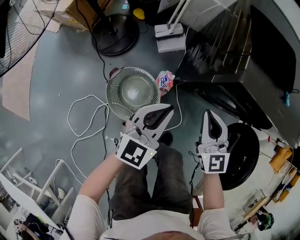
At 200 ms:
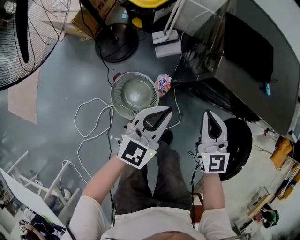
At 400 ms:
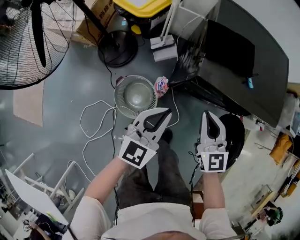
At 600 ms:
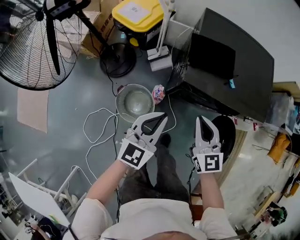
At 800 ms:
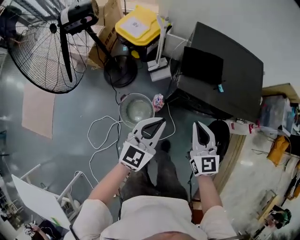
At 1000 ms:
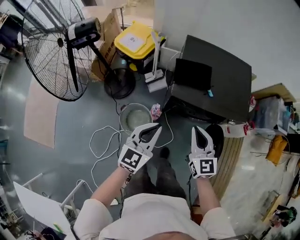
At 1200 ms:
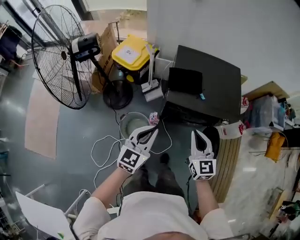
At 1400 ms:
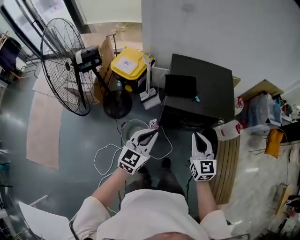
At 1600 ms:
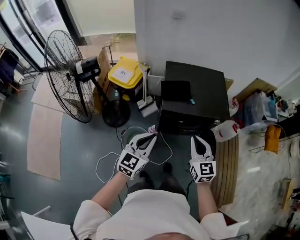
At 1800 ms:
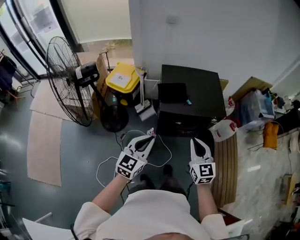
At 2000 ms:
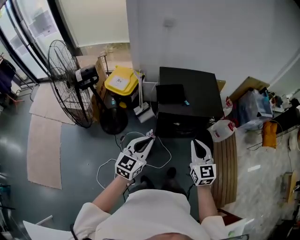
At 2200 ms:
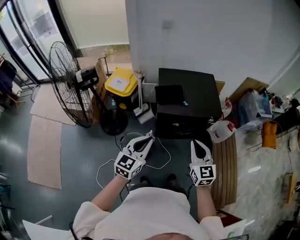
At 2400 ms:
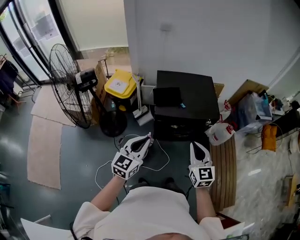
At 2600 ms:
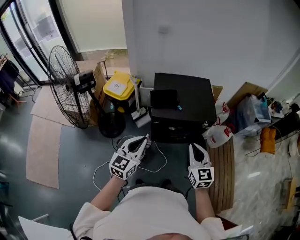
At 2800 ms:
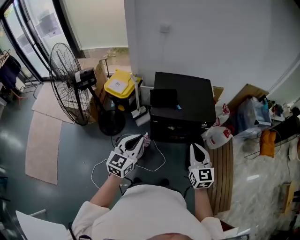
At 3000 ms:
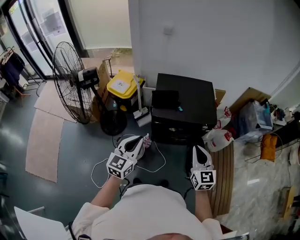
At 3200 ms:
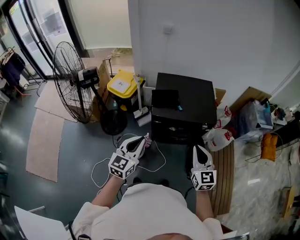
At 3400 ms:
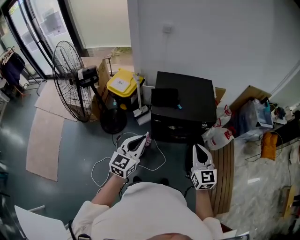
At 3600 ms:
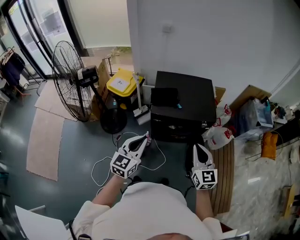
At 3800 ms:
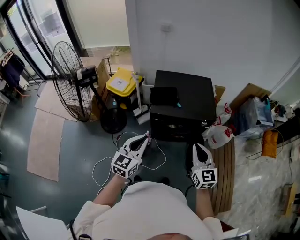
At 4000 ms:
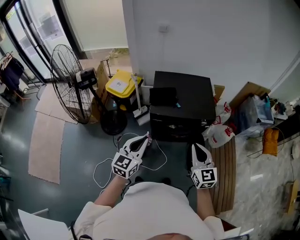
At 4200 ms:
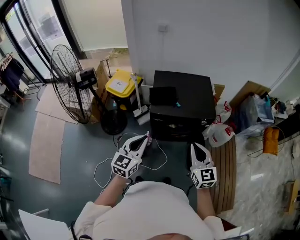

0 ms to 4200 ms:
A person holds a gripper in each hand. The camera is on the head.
0 ms to 1400 ms: The two grippers go some 40 cm upward. The right gripper rotates about 20 degrees.
1400 ms to 2800 ms: The left gripper is displaced upward and backward by some 10 cm, while the right gripper is displaced to the right, upward and backward by some 15 cm.
2800 ms to 4200 ms: The grippers move only a little.

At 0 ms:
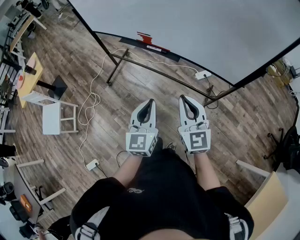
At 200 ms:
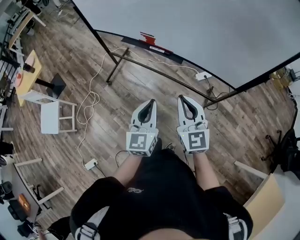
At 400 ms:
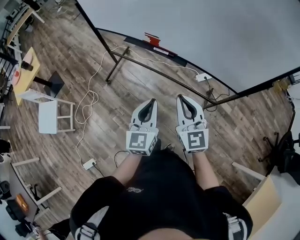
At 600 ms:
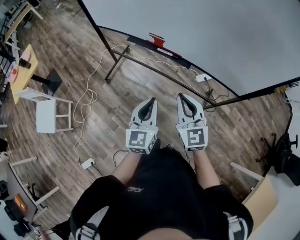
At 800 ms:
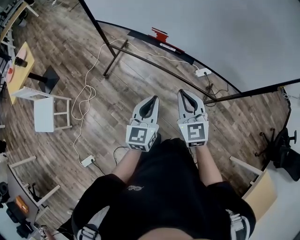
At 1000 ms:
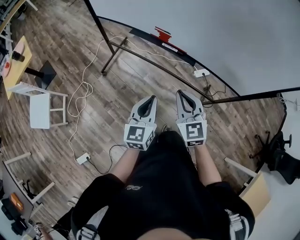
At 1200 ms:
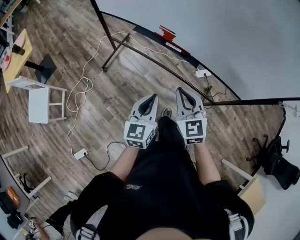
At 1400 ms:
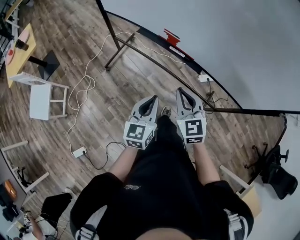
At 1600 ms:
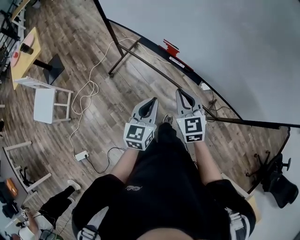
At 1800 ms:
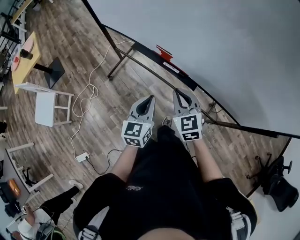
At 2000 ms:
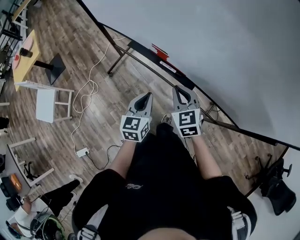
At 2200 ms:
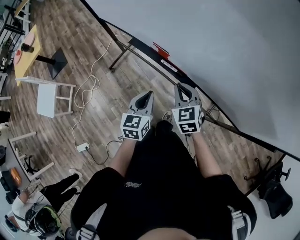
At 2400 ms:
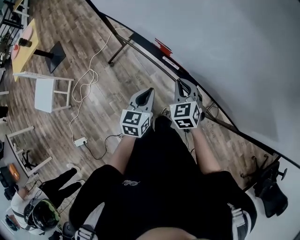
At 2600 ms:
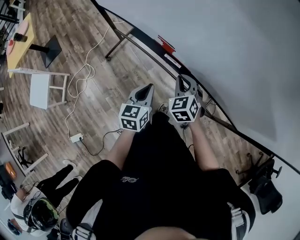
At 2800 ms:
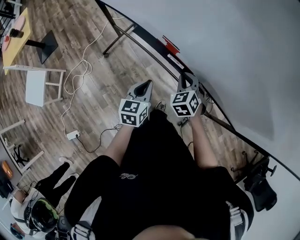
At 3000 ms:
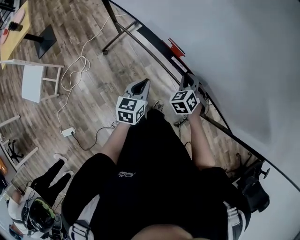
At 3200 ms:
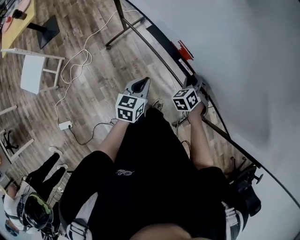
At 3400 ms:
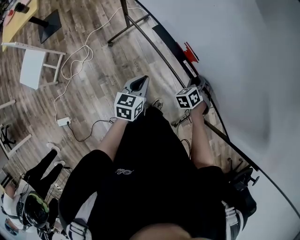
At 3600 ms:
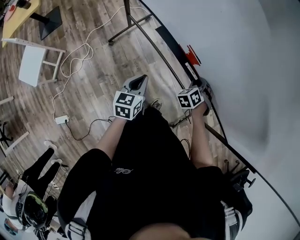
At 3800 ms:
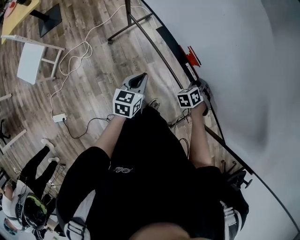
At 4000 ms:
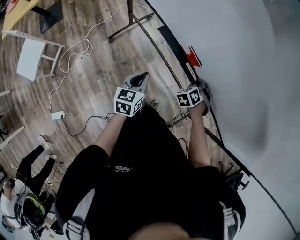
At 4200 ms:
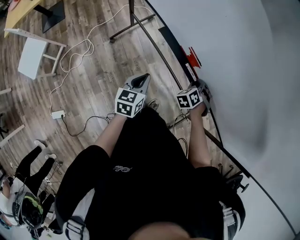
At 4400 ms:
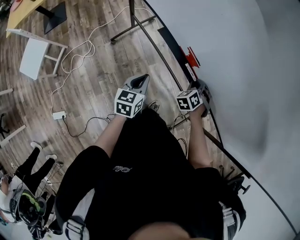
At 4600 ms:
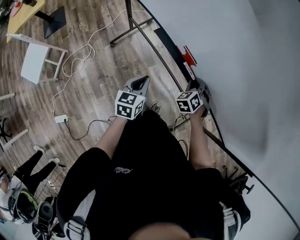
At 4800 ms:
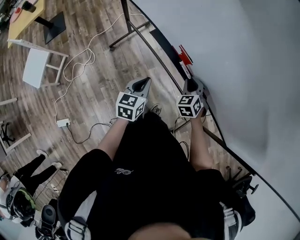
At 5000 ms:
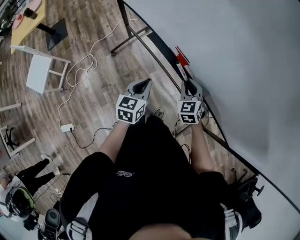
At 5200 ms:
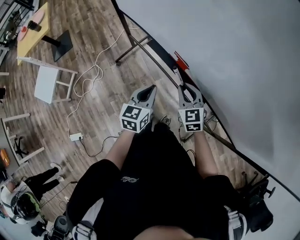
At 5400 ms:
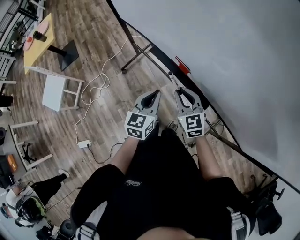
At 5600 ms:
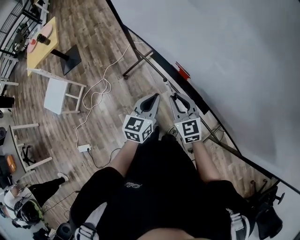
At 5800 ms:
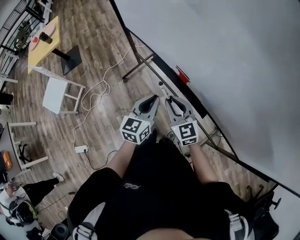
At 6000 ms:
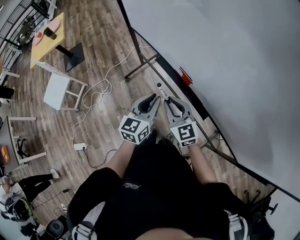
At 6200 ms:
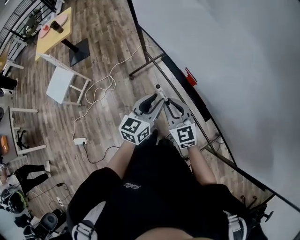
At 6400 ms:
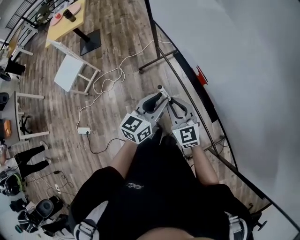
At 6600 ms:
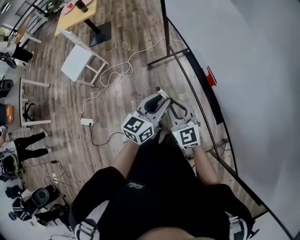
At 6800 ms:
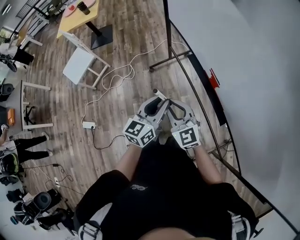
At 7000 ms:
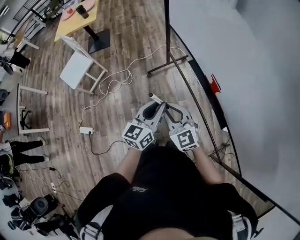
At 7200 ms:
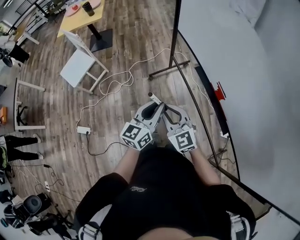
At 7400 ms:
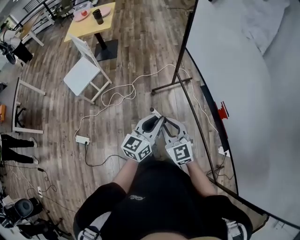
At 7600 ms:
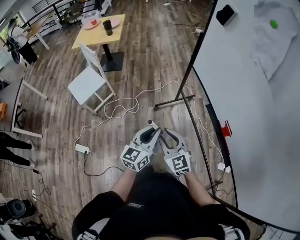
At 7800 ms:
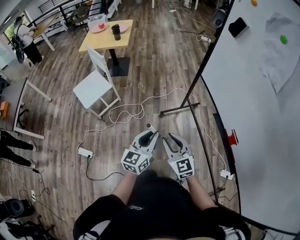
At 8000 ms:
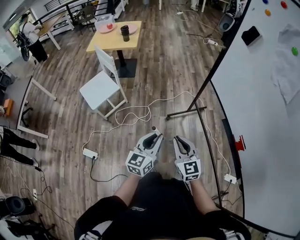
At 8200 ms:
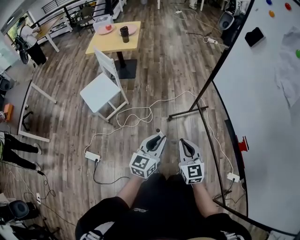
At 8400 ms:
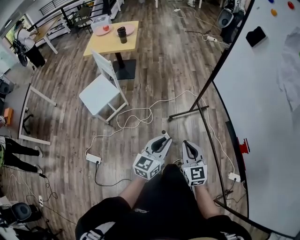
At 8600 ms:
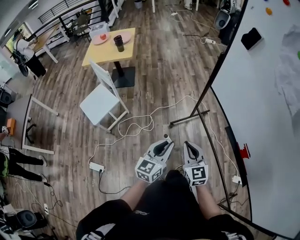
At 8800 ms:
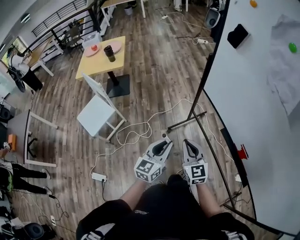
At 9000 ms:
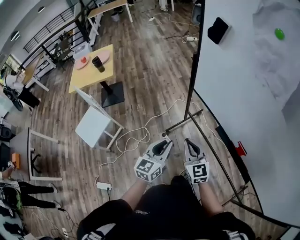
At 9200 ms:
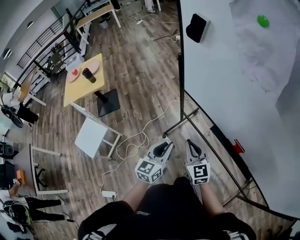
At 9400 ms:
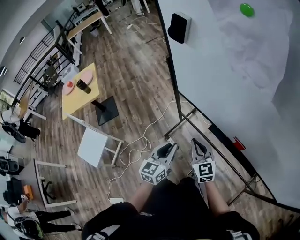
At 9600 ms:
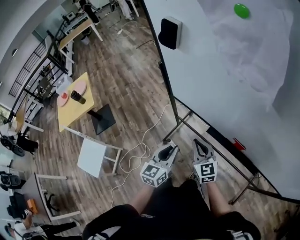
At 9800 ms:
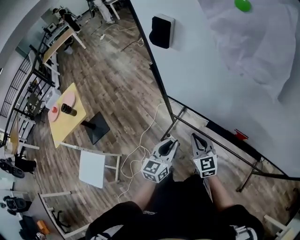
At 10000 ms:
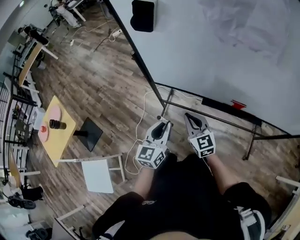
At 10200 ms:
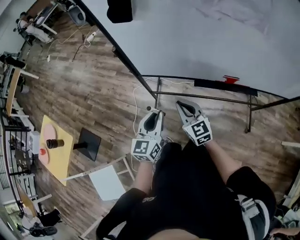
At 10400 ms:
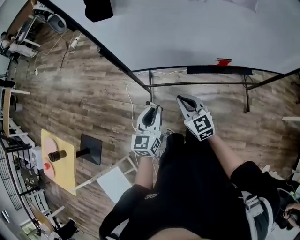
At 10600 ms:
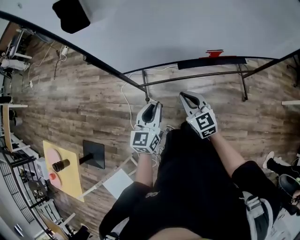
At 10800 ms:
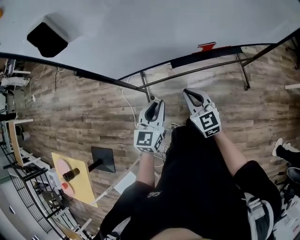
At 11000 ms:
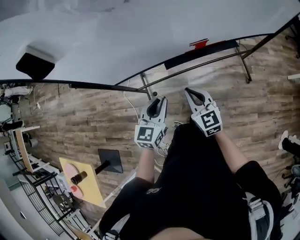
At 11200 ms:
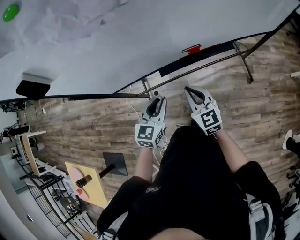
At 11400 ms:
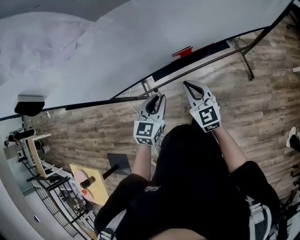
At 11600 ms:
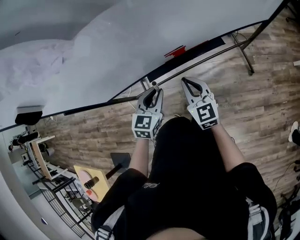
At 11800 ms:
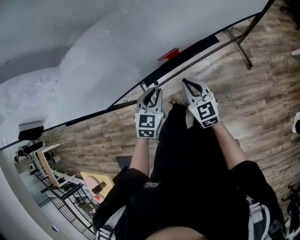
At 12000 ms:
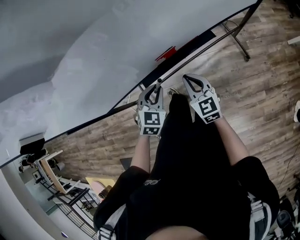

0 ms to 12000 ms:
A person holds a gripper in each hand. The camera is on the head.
0 ms to 1600 ms: The right gripper is displaced forward and to the left by roughly 25 cm, and swivels about 20 degrees; the left gripper is displaced forward, to the left and downward by some 20 cm.
1600 ms to 3000 ms: The grippers both shift forward and downward by about 20 cm. The right gripper turns by approximately 40 degrees.
3000 ms to 4400 ms: The right gripper goes about 5 cm downward; the left gripper goes roughly 5 cm to the left.
4400 ms to 6000 ms: Both grippers move upward, some 15 cm. The right gripper points its fingers approximately 40 degrees further upward.
6000 ms to 7600 ms: The two grippers go approximately 30 cm to the left. The right gripper turns by approximately 20 degrees; the left gripper swivels approximately 20 degrees.
7600 ms to 9000 ms: Both grippers travel together forward, about 15 cm. The right gripper rotates some 30 degrees, and closes.
9000 ms to 10400 ms: The right gripper changes place by roughly 10 cm, and swivels roughly 40 degrees; the left gripper ends up some 15 cm from where it was, and turns by approximately 40 degrees.
10400 ms to 12000 ms: The right gripper shifts by about 35 cm, and swivels roughly 30 degrees. Meanwhile the left gripper ends up about 35 cm from where it was, and swivels some 60 degrees.

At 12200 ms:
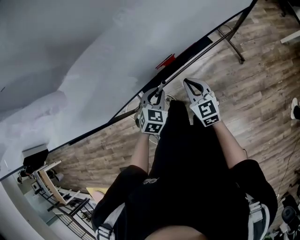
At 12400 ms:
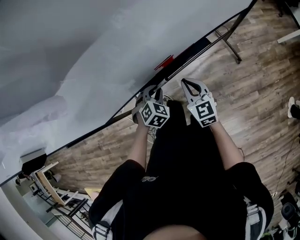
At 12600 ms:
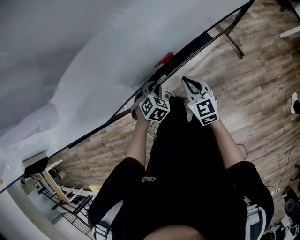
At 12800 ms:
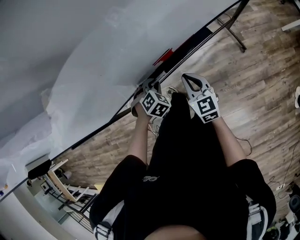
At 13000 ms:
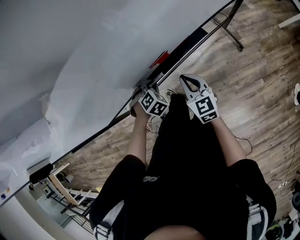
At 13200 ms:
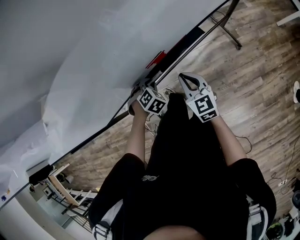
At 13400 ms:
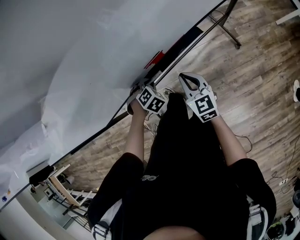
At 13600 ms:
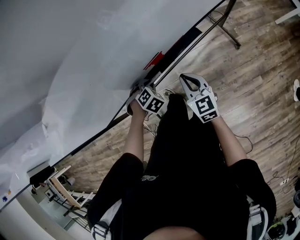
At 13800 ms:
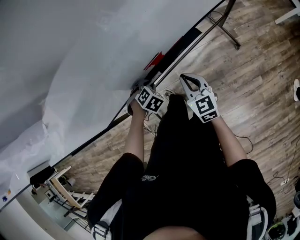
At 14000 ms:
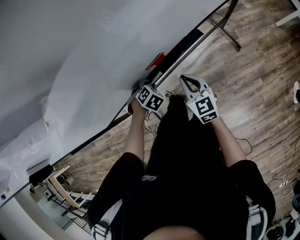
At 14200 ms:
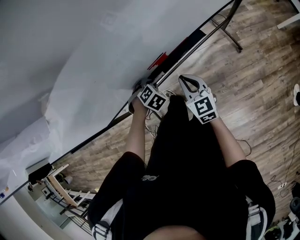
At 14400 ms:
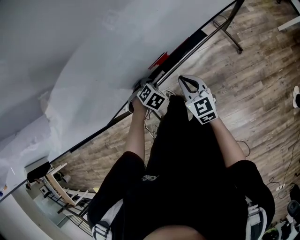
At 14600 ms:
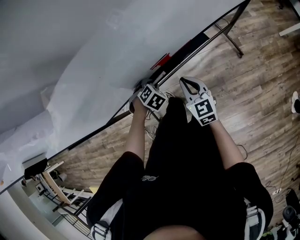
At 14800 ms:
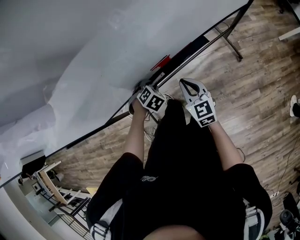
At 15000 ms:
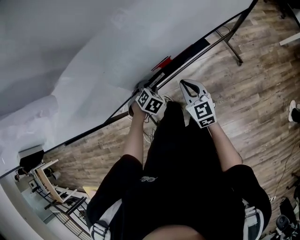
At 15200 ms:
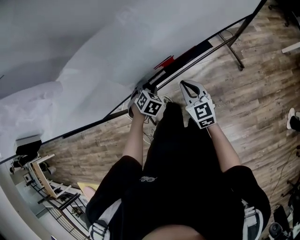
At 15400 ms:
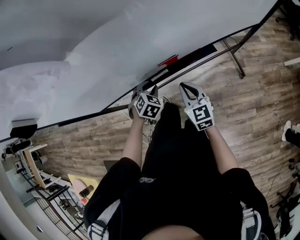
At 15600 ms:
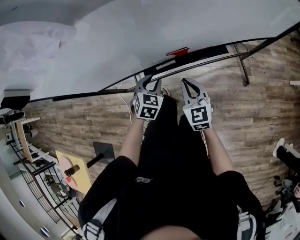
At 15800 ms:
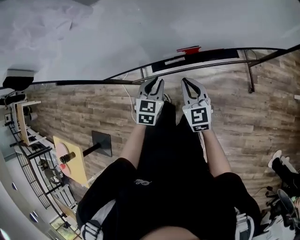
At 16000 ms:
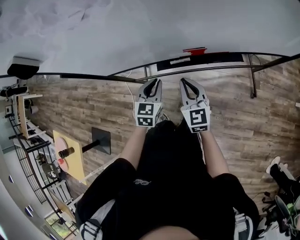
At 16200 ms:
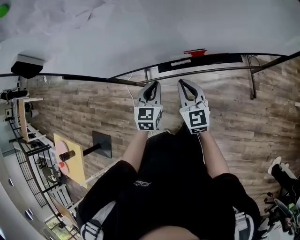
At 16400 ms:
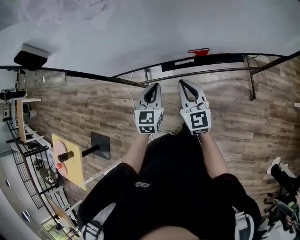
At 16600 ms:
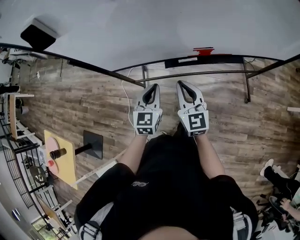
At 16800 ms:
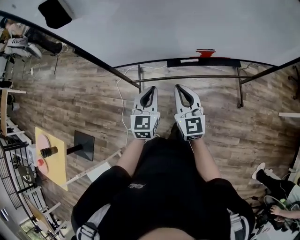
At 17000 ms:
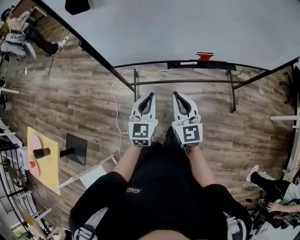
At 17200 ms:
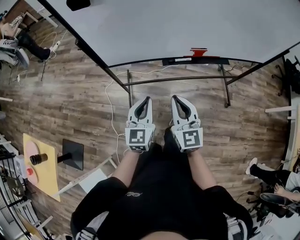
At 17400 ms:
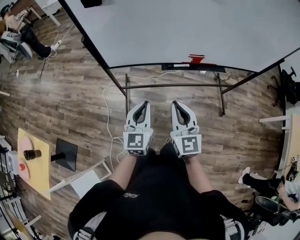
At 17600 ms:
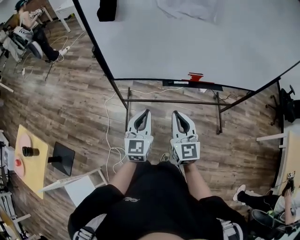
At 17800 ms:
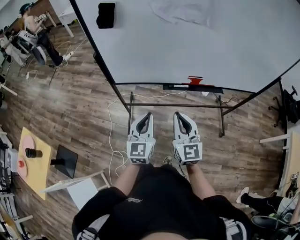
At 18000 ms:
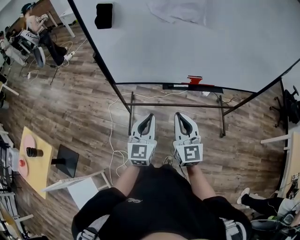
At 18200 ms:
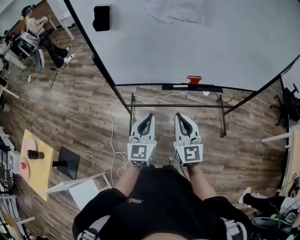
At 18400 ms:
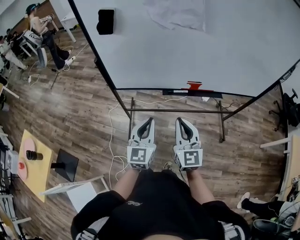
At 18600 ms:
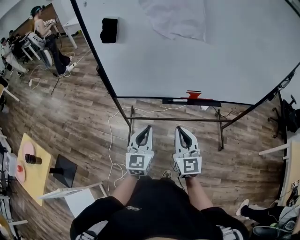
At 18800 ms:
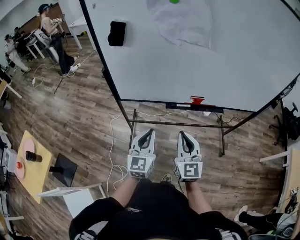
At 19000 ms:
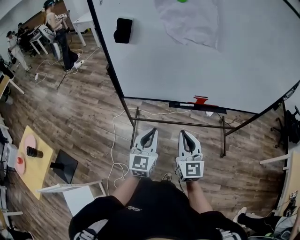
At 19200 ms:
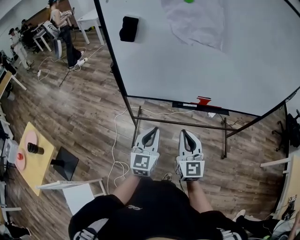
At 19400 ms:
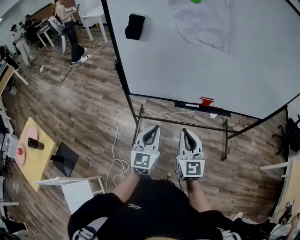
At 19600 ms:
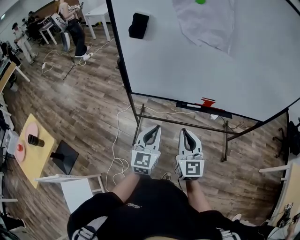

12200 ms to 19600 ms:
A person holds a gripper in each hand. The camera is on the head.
12200 ms to 13600 ms: The left gripper travels downward by about 10 cm, and swivels roughly 30 degrees.
13600 ms to 15200 ms: The grippers make only small movements.
15200 ms to 16600 ms: The right gripper heads to the left and upward, covering about 15 cm, while the left gripper heads upward, backward and to the left, covering roughly 20 cm, angles its fingers upward, by about 40 degrees, and closes up.
16600 ms to 18200 ms: Both grippers move backward and upward, approximately 20 cm.
18200 ms to 19600 ms: The grippers move only a little.
